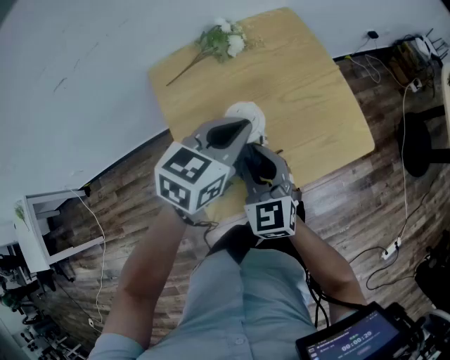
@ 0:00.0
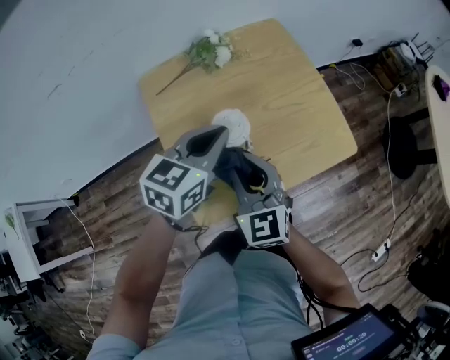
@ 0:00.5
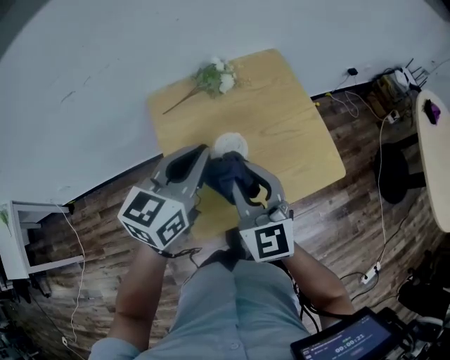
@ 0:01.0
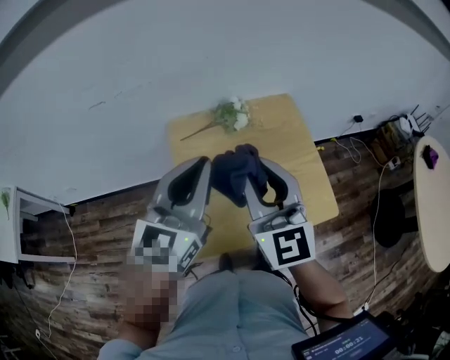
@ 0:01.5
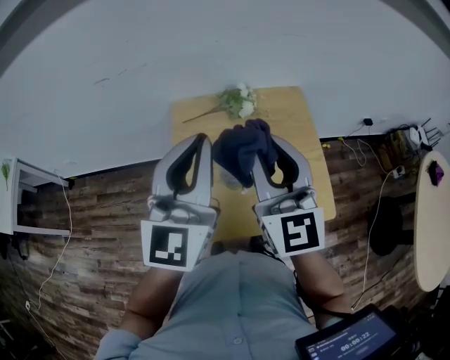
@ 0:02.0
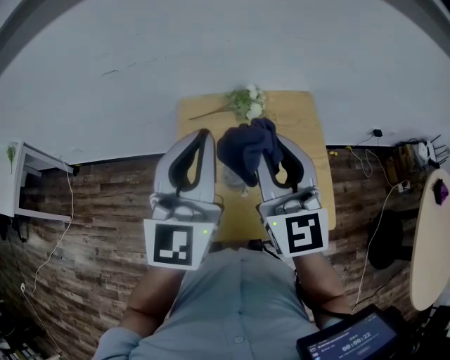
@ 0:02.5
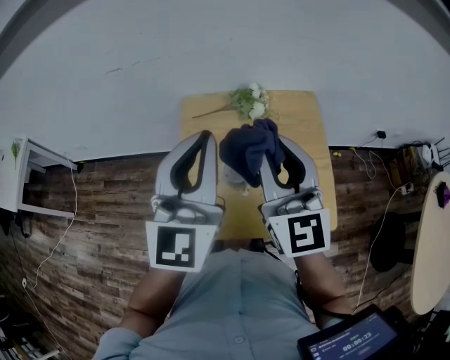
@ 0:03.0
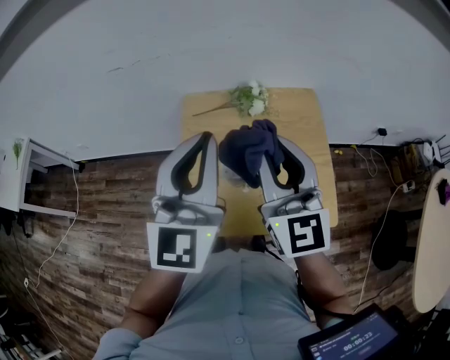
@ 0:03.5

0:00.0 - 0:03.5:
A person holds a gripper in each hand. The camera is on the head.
0:00.0 - 0:02.0: Both grippers move upward, some 25 cm. The left gripper tips its fingers upward by approximately 40 degrees; the right gripper changes its angle by about 30 degrees.
0:02.0 - 0:03.5: There are only small adjustments of the grippers.

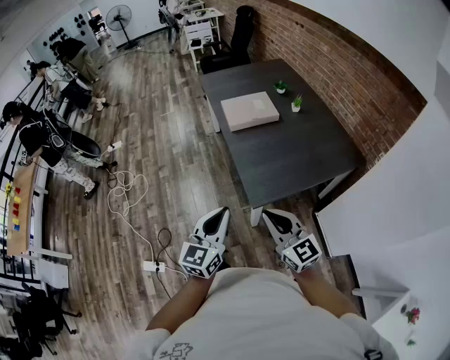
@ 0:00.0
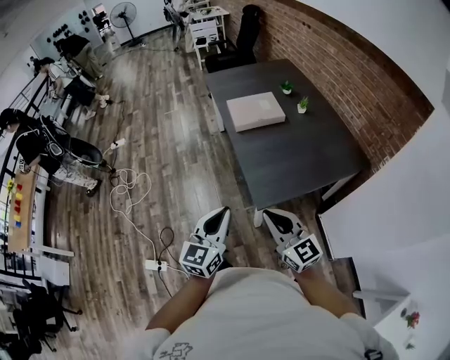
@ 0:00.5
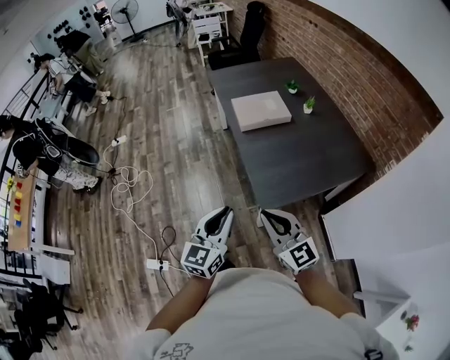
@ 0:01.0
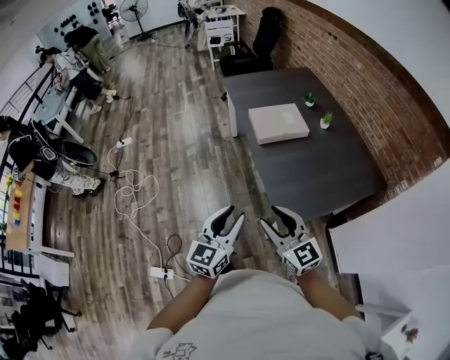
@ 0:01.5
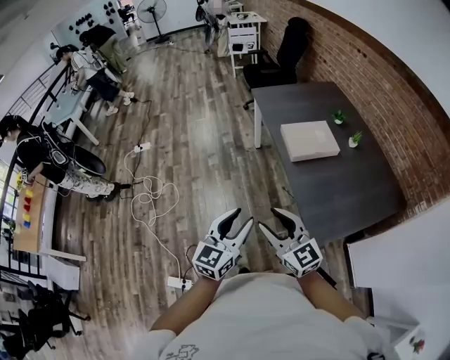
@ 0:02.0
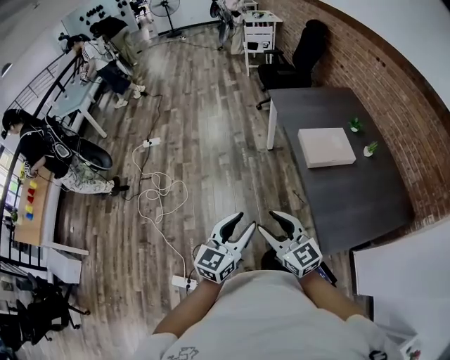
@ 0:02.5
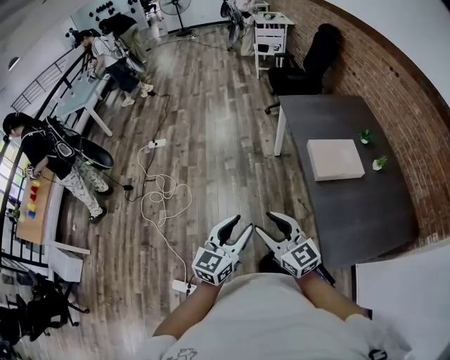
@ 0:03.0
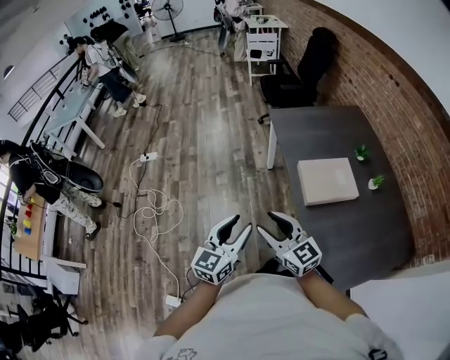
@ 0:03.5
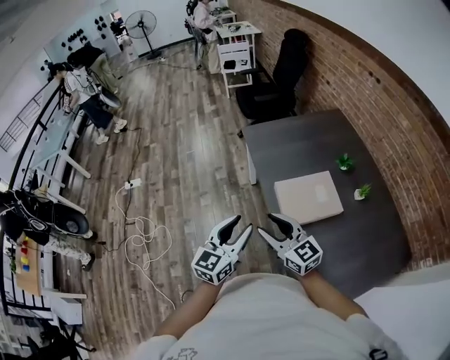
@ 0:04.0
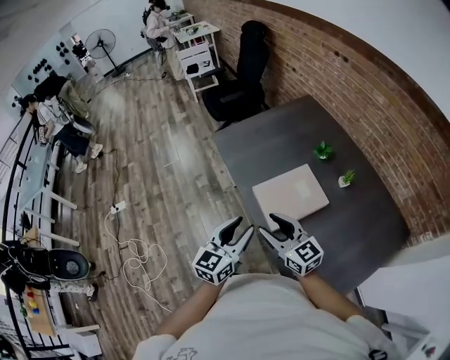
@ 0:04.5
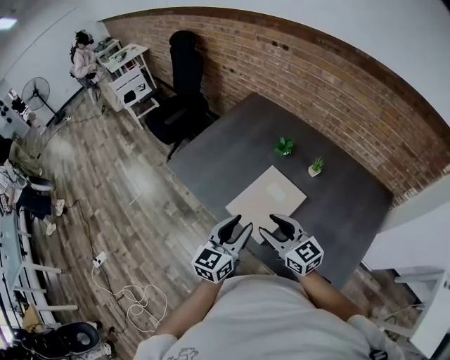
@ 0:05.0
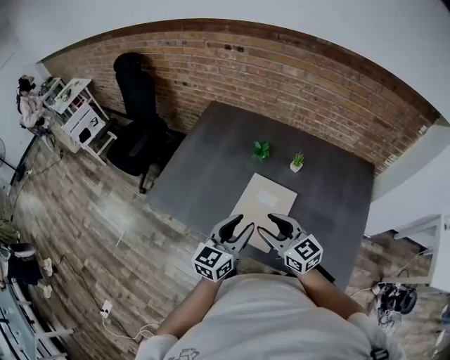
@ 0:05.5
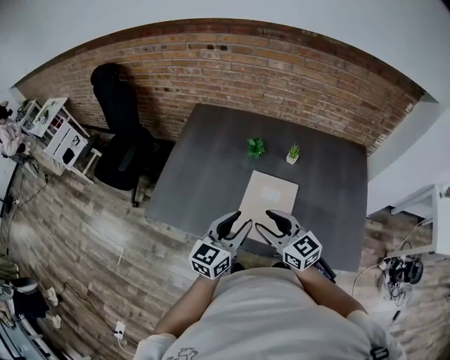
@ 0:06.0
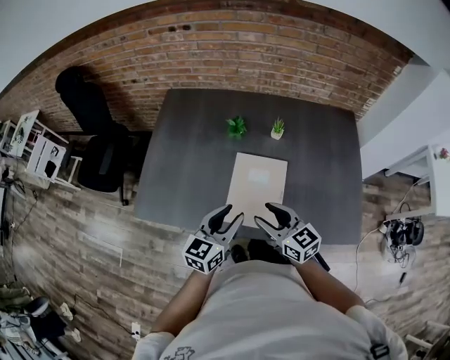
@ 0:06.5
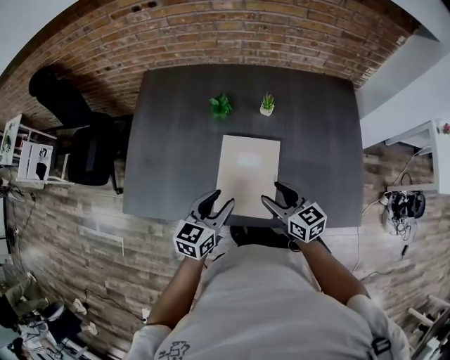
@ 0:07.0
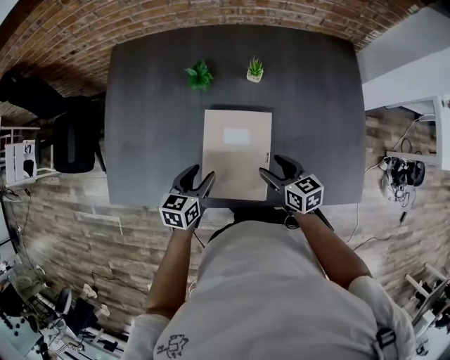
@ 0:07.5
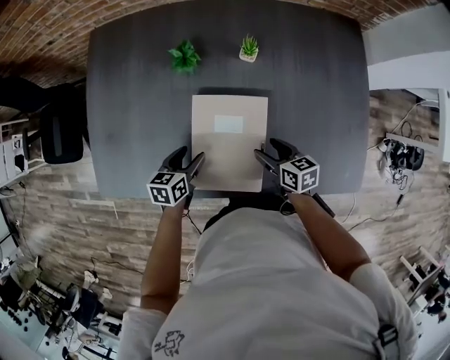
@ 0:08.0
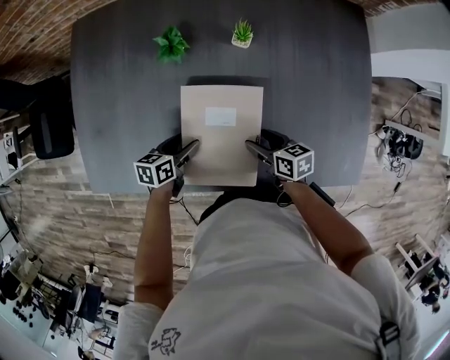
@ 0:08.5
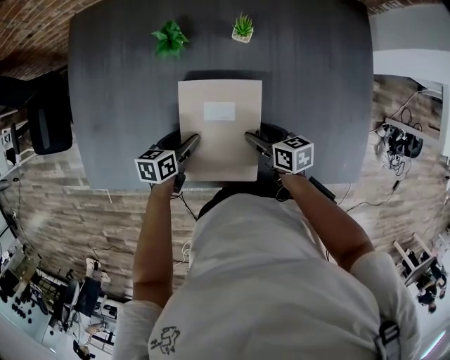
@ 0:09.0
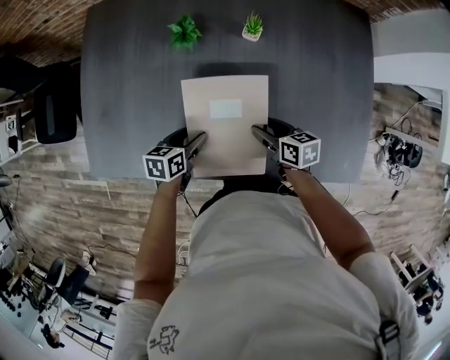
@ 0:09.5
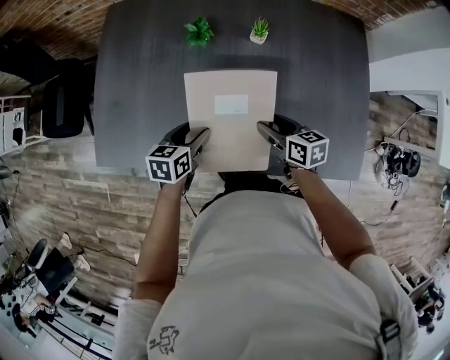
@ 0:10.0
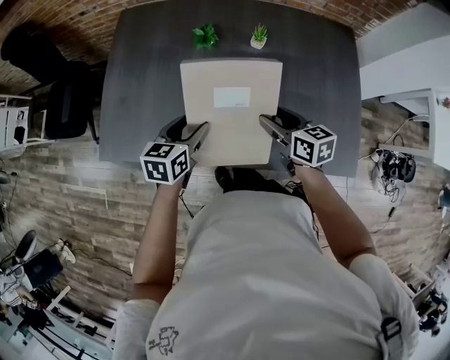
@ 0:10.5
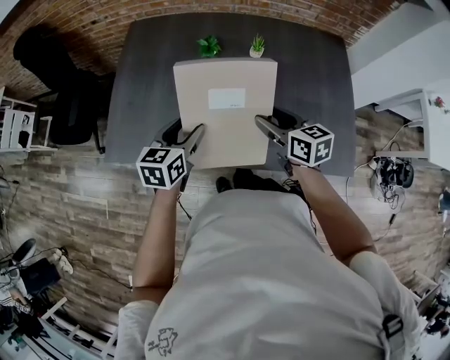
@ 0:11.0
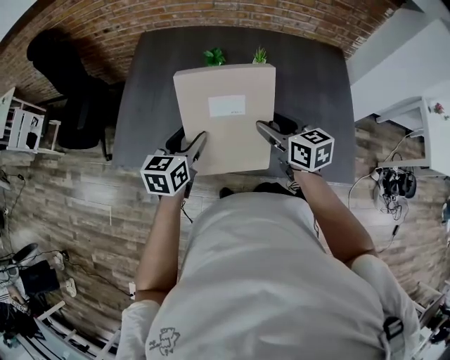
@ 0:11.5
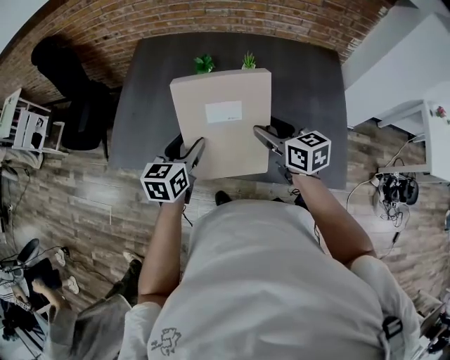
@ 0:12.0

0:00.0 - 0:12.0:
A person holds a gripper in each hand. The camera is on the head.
0:00.0 - 0:02.0: Both grippers travel together to the left and forward, some 30 cm. The left gripper opens. Meanwhile the right gripper opens.
0:02.0 - 0:04.0: The grippers both shift forward by approximately 35 cm.
0:04.0 - 0:06.0: The left gripper shifts by approximately 30 cm, and changes its angle by about 60 degrees, while the right gripper changes place by roughly 25 cm, and changes its angle by about 60 degrees.
0:06.0 - 0:08.0: The left gripper goes about 30 cm downward and forward, tips its fingers downward by roughly 40 degrees, and opens. Meanwhile the right gripper travels downward and to the right by about 30 cm, and swivels about 50 degrees.
0:08.0 - 0:10.0: The grippers both shift upward by about 5 cm.
0:10.0 - 0:12.0: The left gripper shifts approximately 20 cm upward and backward, and rotates about 20 degrees. The right gripper is displaced upward by roughly 20 cm.

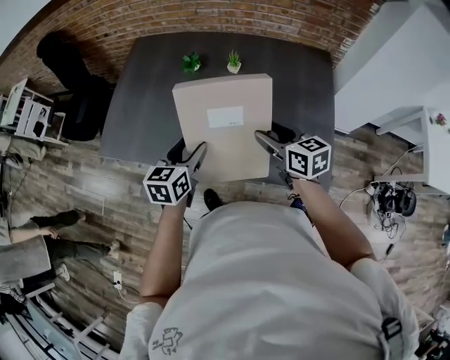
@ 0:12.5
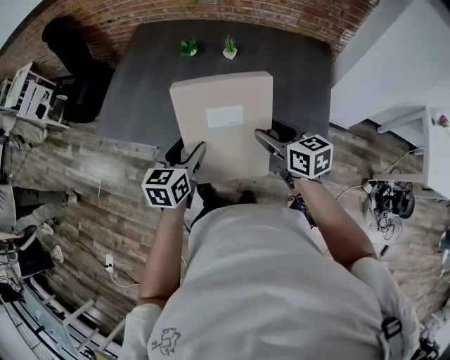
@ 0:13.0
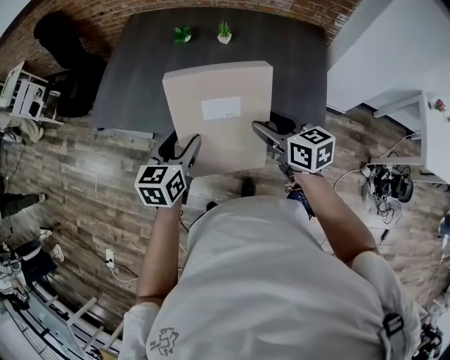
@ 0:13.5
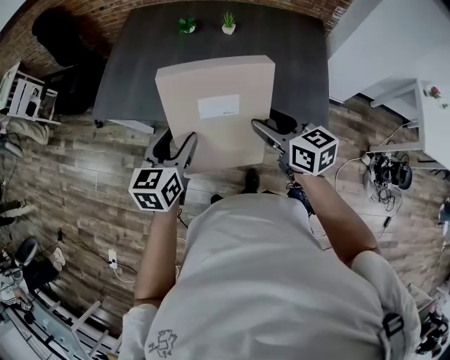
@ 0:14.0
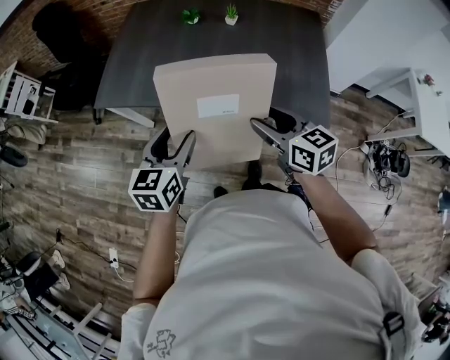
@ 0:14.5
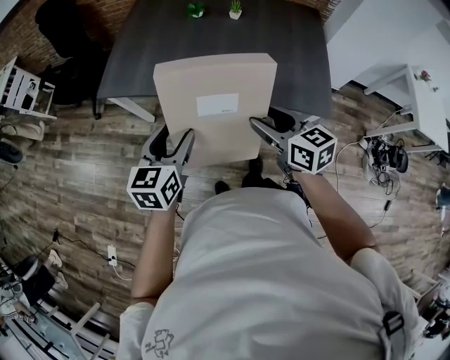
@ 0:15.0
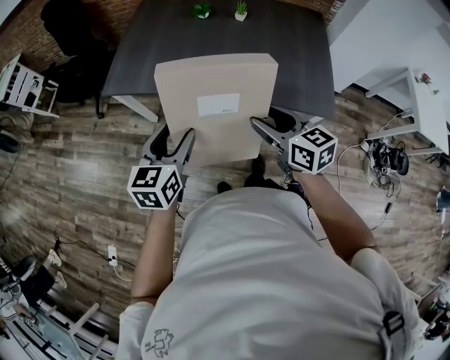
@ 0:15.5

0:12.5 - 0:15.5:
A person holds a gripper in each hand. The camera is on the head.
0:12.5 - 0:14.0: The two grippers go about 15 cm backward.
0:14.0 - 0:15.5: Both grippers move to the left and backward, some 15 cm.

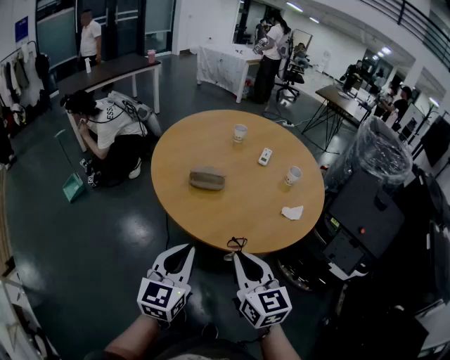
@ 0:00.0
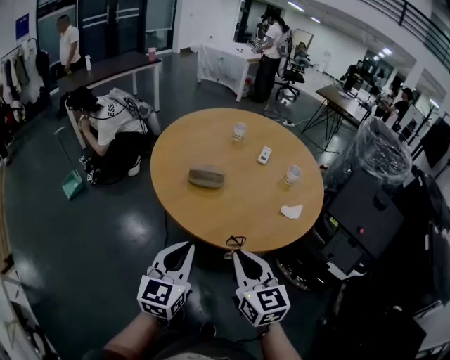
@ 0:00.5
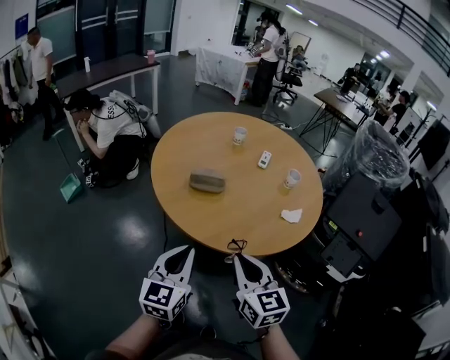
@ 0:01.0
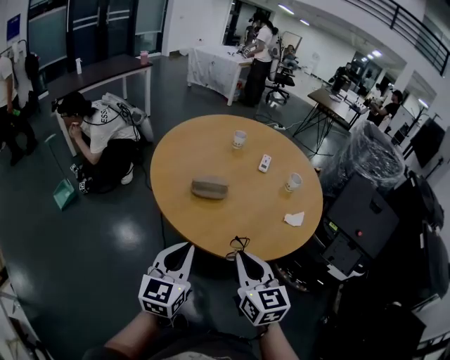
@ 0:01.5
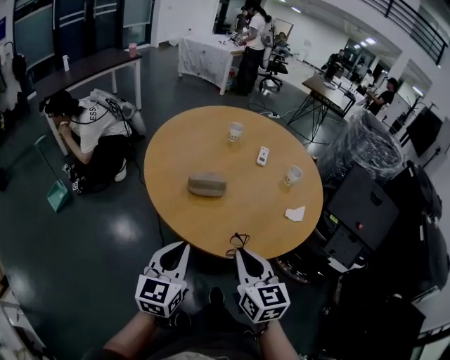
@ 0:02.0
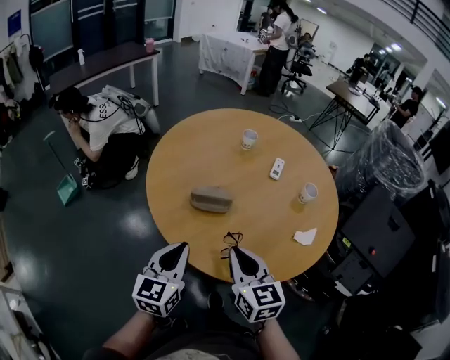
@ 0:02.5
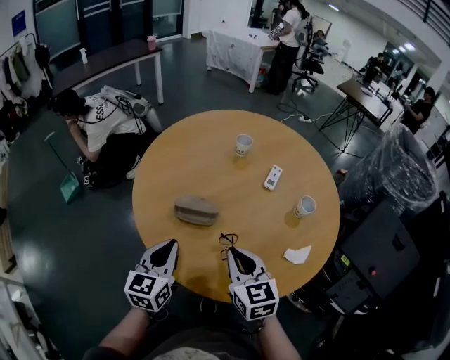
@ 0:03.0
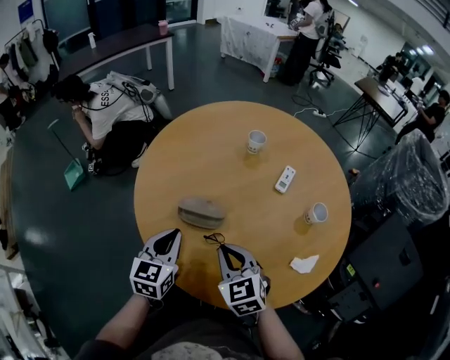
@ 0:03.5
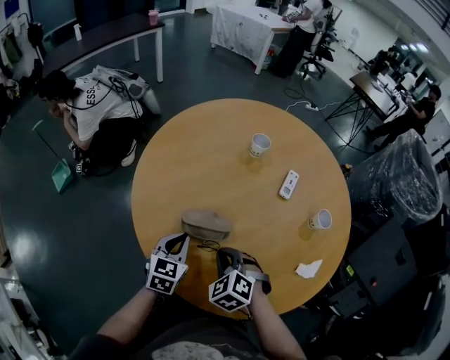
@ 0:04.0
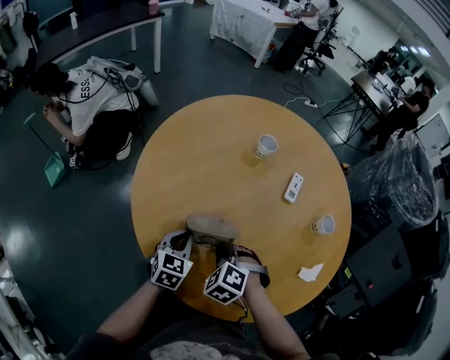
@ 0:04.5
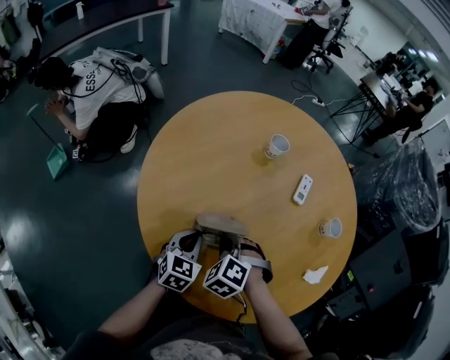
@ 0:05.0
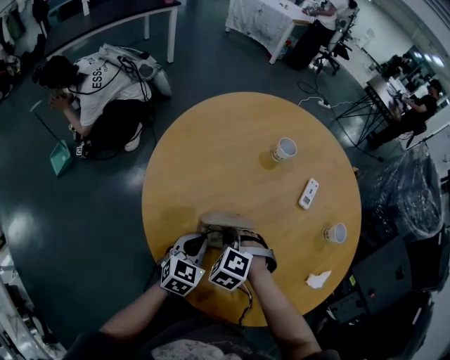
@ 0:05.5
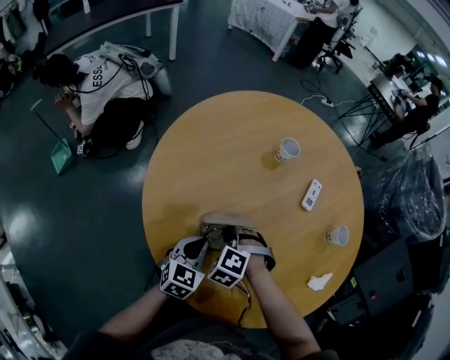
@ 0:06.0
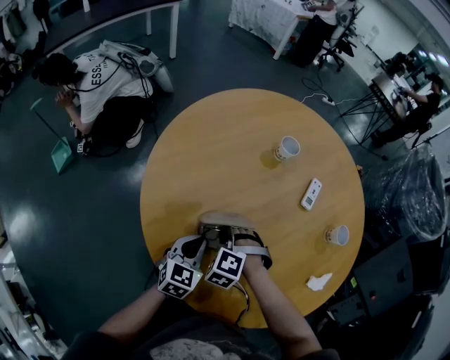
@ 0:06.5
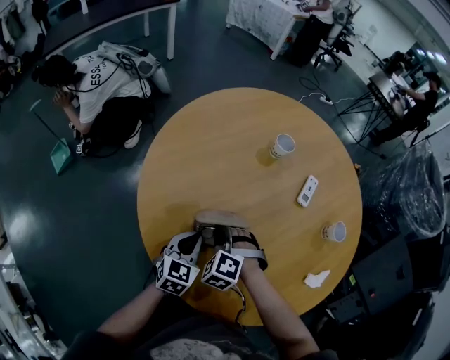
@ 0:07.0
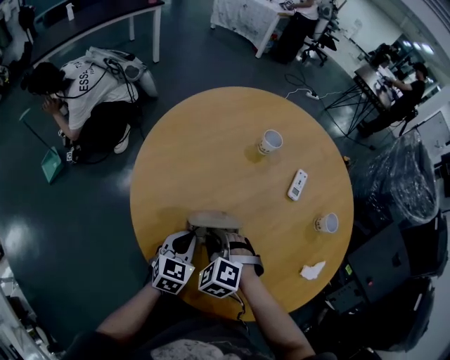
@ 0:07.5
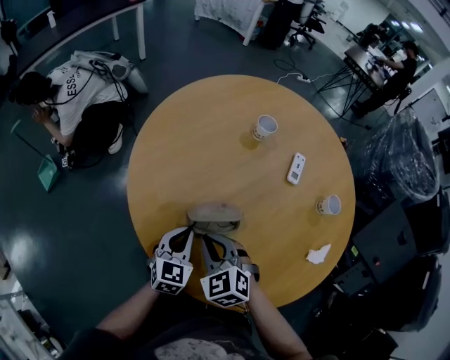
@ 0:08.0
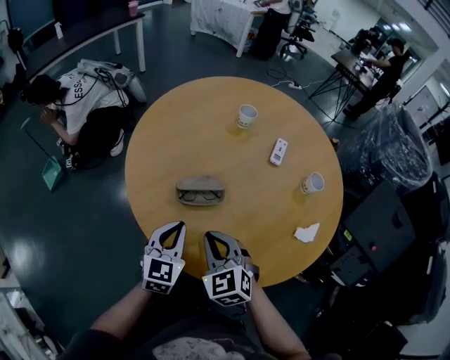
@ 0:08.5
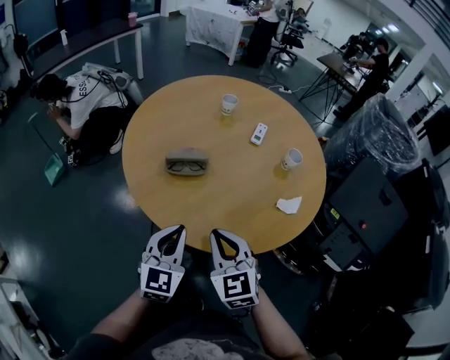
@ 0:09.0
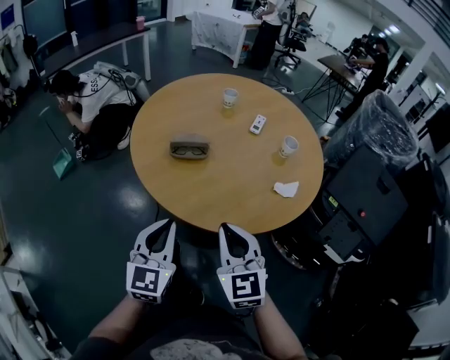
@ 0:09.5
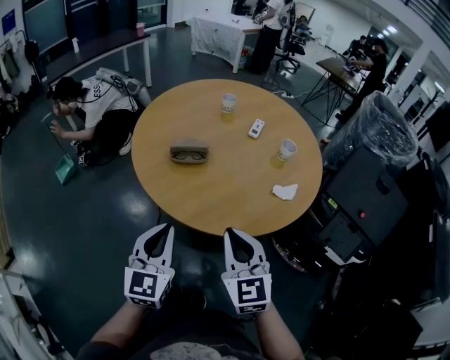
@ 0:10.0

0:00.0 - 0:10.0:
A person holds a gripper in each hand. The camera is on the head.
0:00.0 - 0:02.0: The right gripper is displaced forward by some 5 cm; the left gripper is displaced forward and to the left by roughly 10 cm.
0:02.0 - 0:04.0: The two grippers go some 30 cm forward and downward. The left gripper changes its angle by some 20 degrees. The right gripper tilts its fingers some 40 degrees downward.
0:04.0 - 0:06.0: The right gripper travels forward, to the left and downward by about 15 cm, and swivels about 20 degrees.
0:06.0 - 0:08.0: The right gripper travels upward and backward by approximately 10 cm, and turns by about 40 degrees.
0:08.0 - 0:10.0: The left gripper is displaced backward and upward by some 40 cm, and changes its angle by about 20 degrees. The right gripper moves backward, to the right and upward, roughly 40 cm, and swivels roughly 40 degrees.
